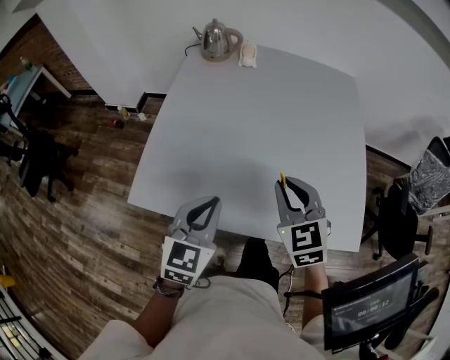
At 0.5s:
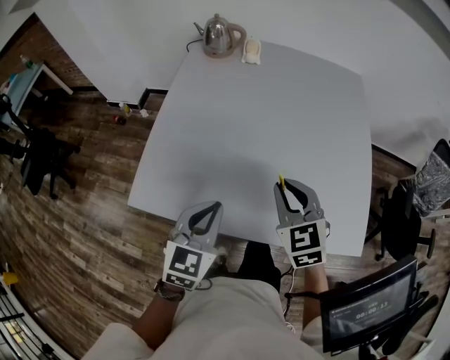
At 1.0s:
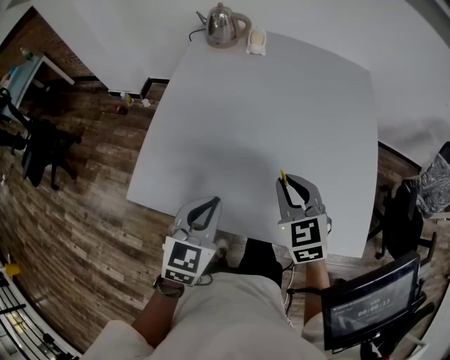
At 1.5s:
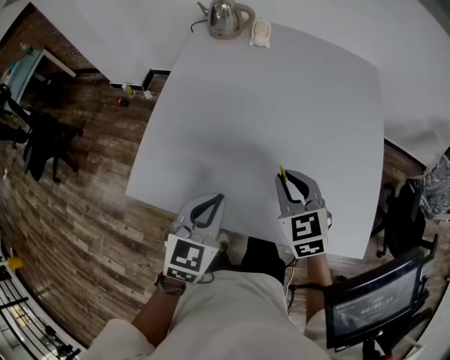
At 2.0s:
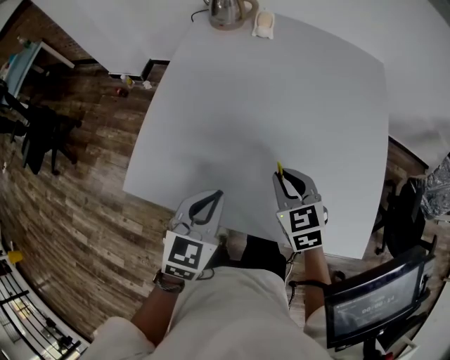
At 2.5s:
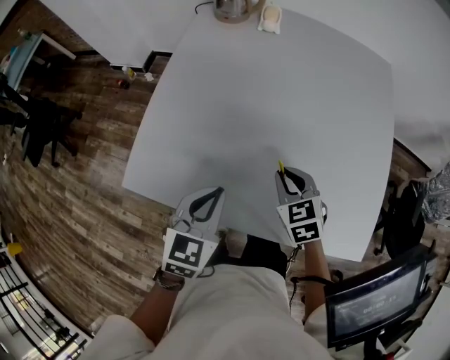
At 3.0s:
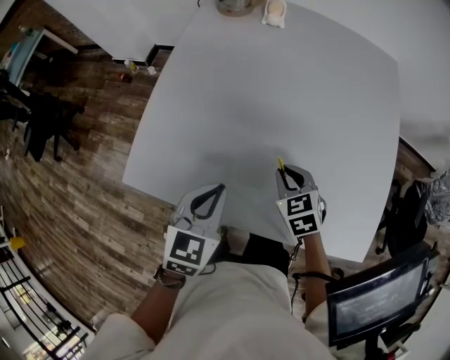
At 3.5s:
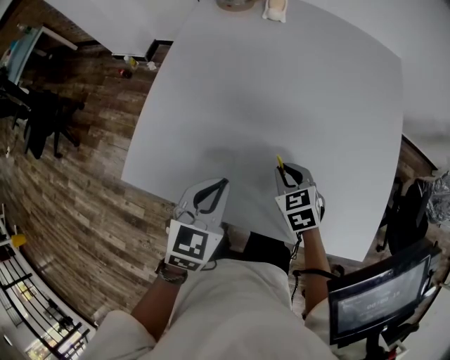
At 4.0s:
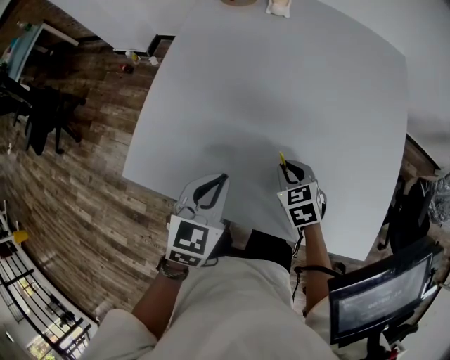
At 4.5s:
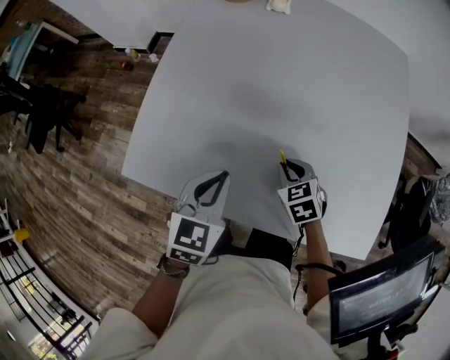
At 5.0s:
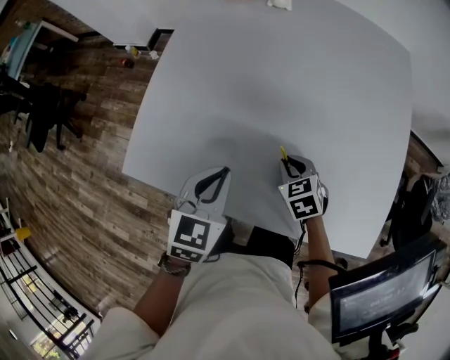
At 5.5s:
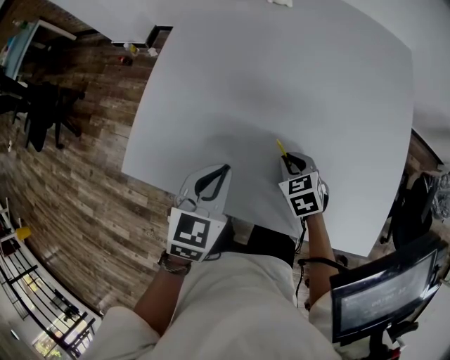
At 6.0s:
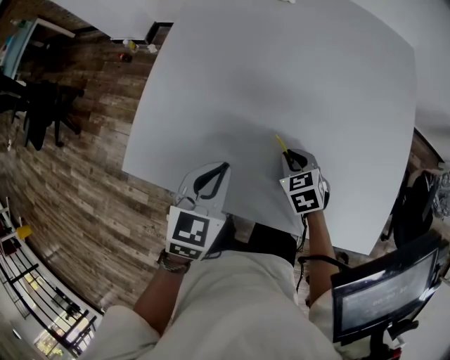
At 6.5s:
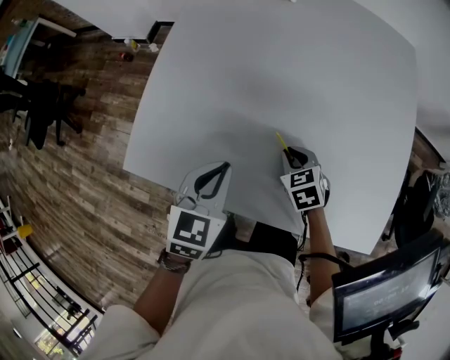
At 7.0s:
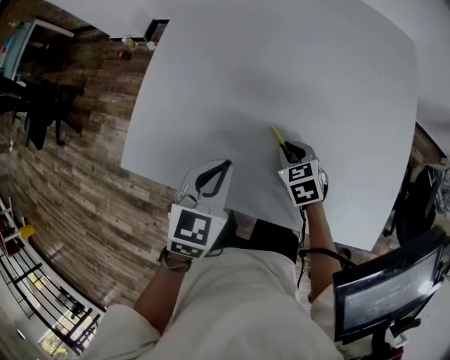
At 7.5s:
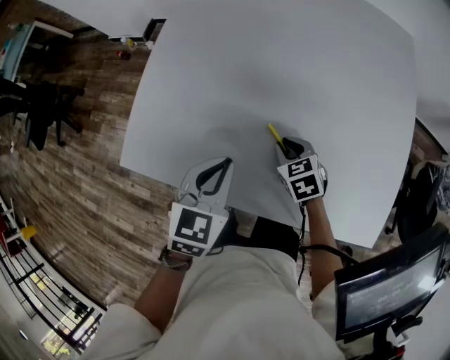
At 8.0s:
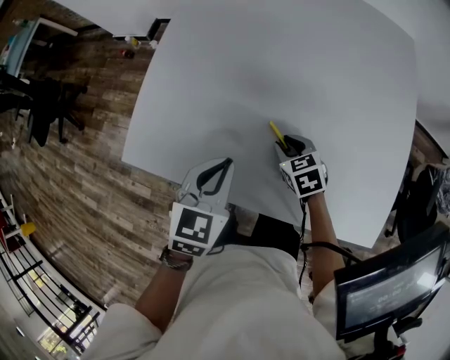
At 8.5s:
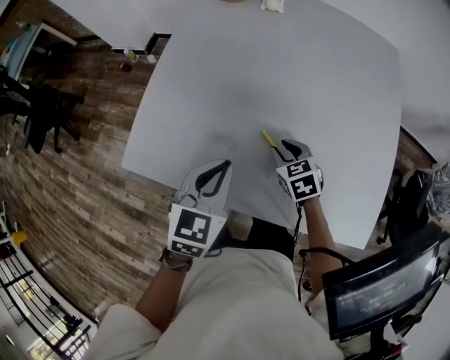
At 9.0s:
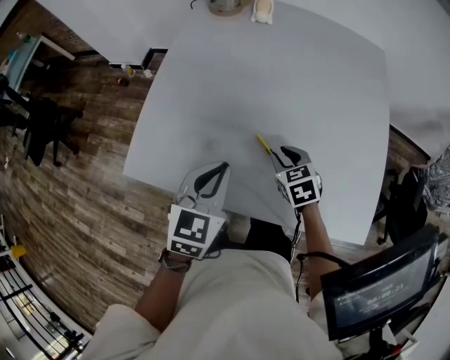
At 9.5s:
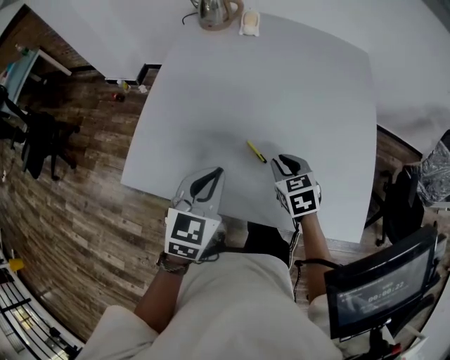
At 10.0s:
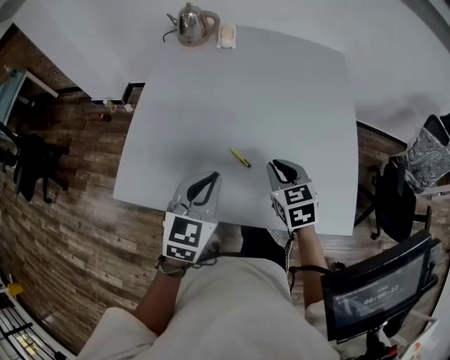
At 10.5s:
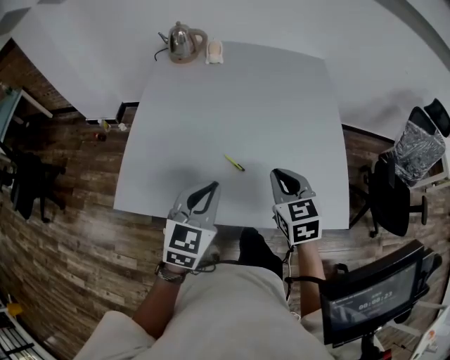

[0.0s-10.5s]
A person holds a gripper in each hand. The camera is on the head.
0.0s to 2.0s: The left gripper moves roughly 5 cm; the right gripper is displaced downward by roughly 10 cm.
2.0s to 4.0s: The right gripper moves downward, approximately 10 cm.
4.0s to 8.5s: The grippers stay close to where they were, moving slightly.
8.5s to 10.5s: The left gripper moves about 5 cm. Meanwhile the right gripper shifts some 20 cm upward and backward, swivels about 30 degrees, and closes up.

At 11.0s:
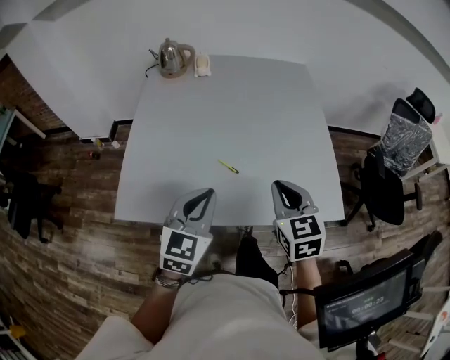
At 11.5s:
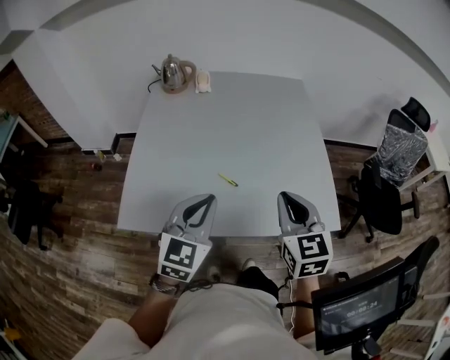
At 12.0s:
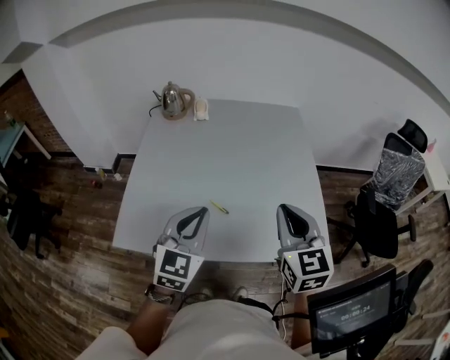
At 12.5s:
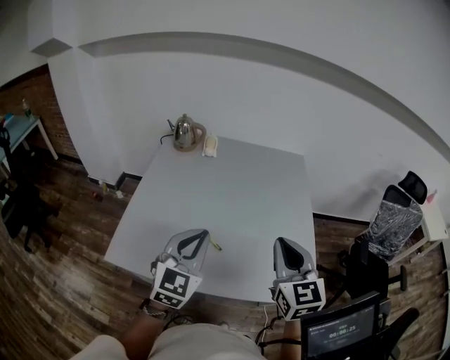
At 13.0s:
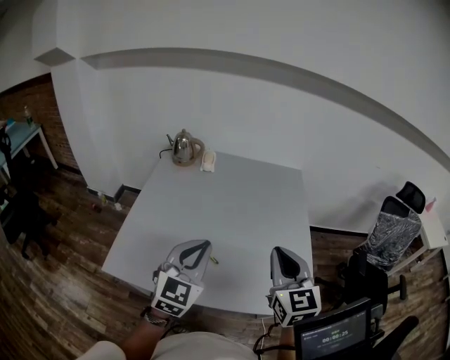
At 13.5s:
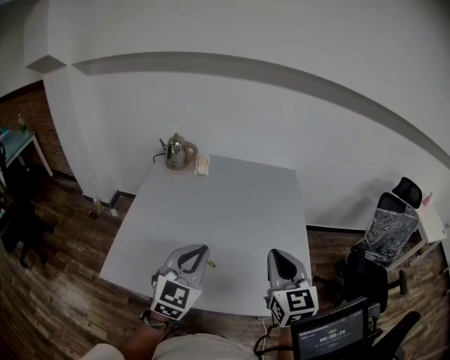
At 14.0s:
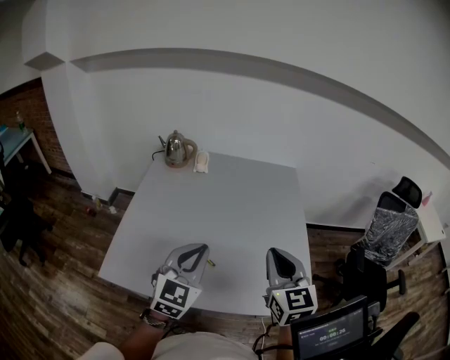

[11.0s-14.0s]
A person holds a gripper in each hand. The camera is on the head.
11.0s to 12.5s: The left gripper goes roughly 10 cm upward and forward. Meanwhile the right gripper goes some 10 cm upward.
12.5s to 14.0s: The grippers stay close to where they were, moving slightly.

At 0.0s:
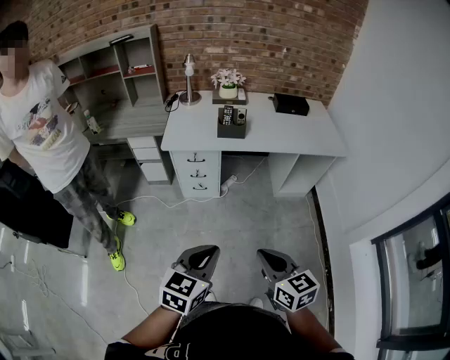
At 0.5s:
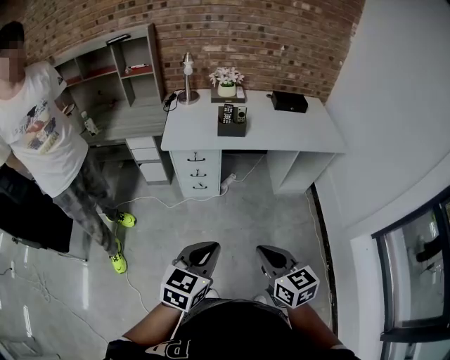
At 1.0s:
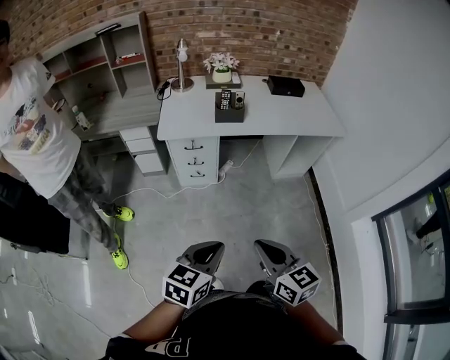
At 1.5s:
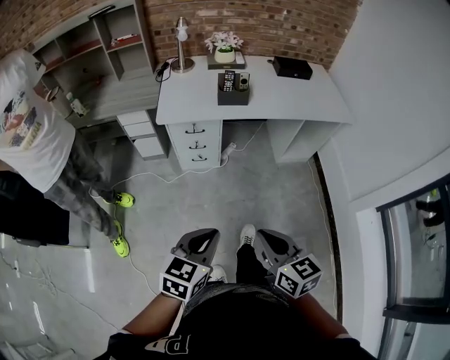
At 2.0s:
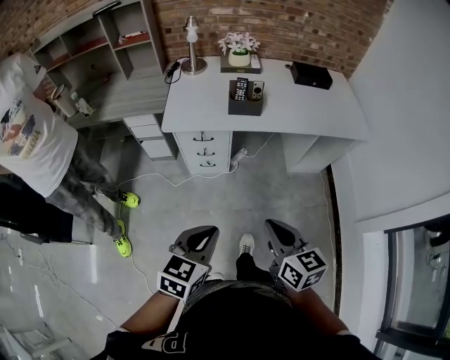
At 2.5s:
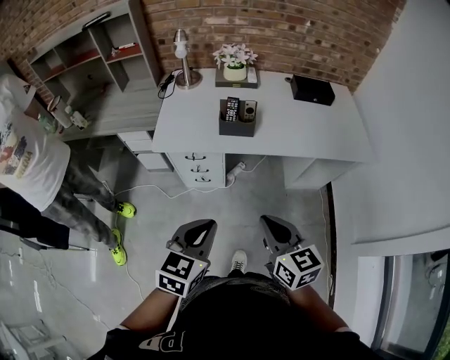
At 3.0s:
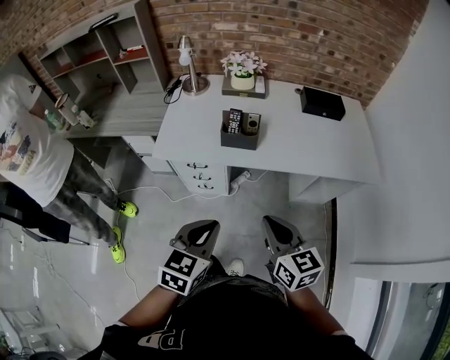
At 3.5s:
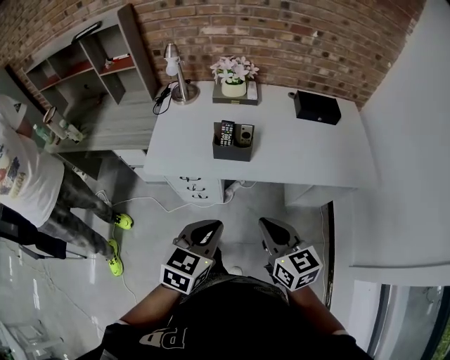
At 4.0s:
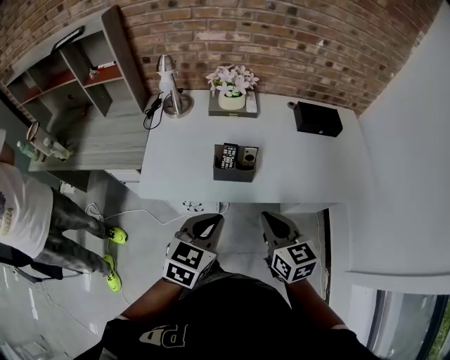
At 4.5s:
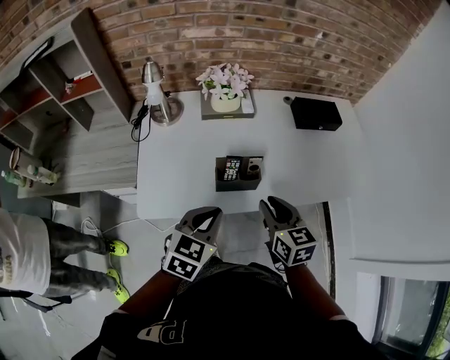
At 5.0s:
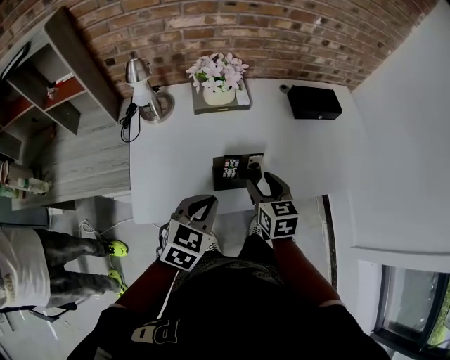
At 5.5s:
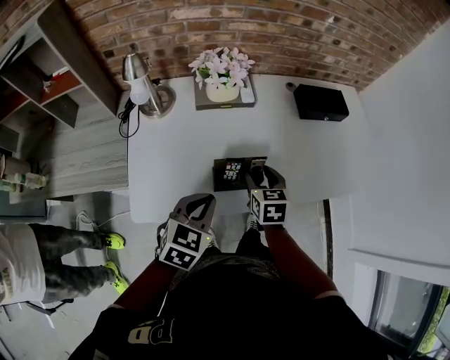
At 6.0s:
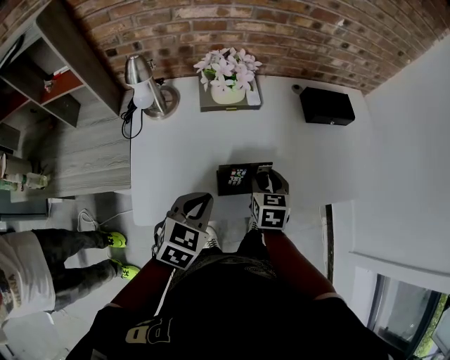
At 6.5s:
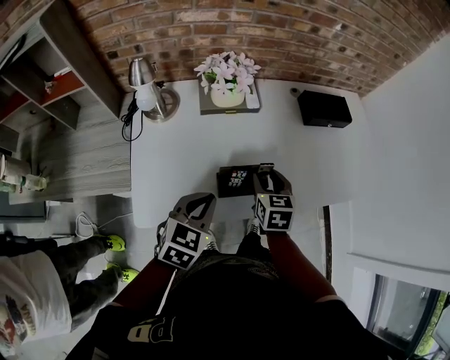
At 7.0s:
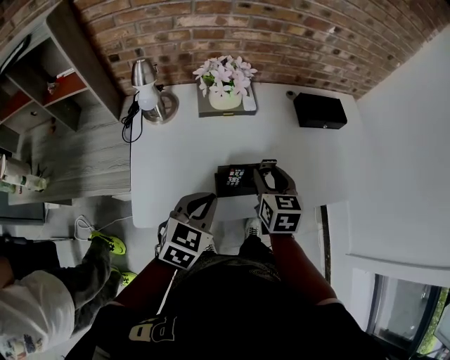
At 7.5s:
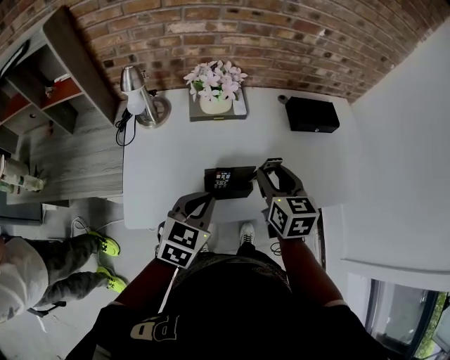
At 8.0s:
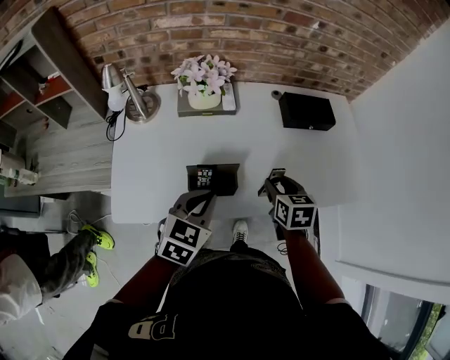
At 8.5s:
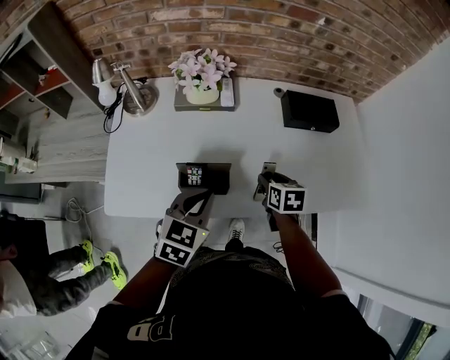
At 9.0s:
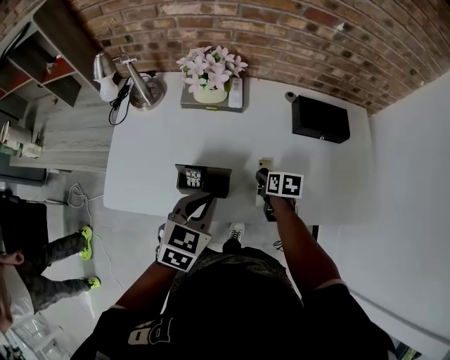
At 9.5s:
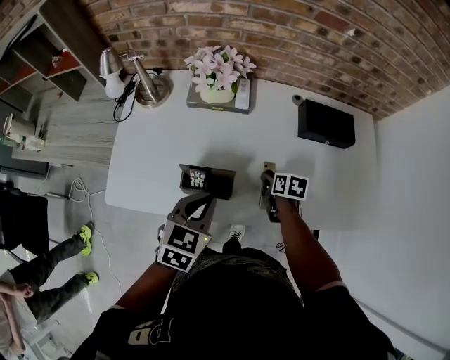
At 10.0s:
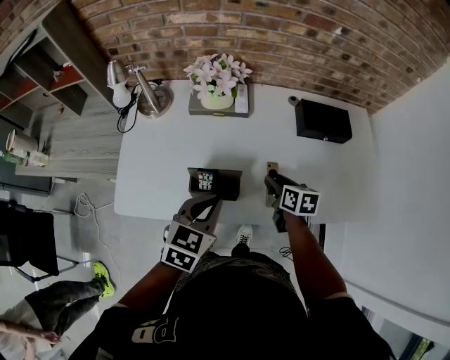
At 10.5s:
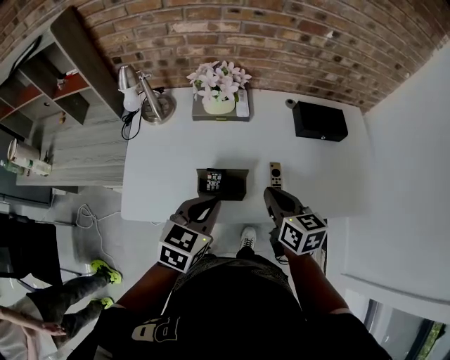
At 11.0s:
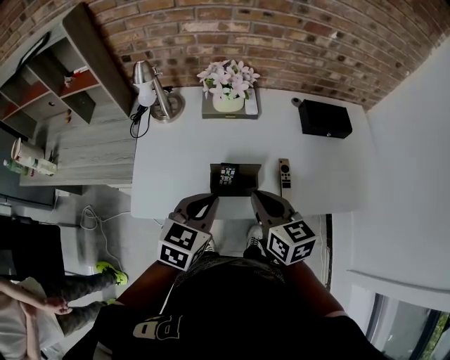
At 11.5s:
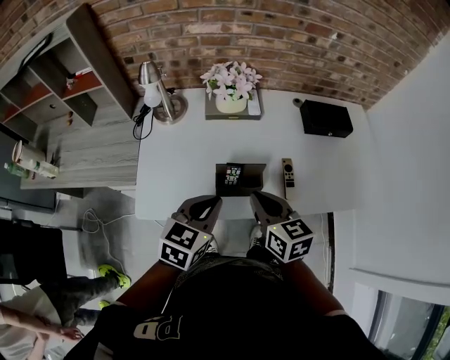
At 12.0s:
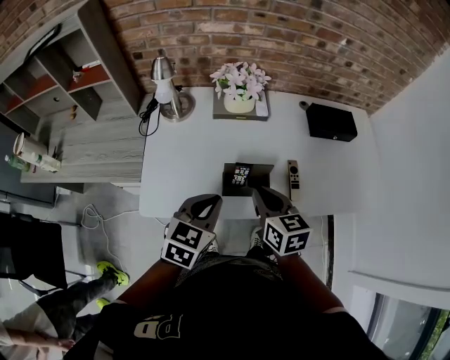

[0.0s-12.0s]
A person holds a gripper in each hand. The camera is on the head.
0.0s to 2.0s: The right gripper is displaced forward by roughly 15 cm. Meanwhile the left gripper heads forward and to the left, covering about 15 cm.
2.0s to 4.0s: The grippers both shift forward by approximately 35 cm.
4.0s to 6.0s: The right gripper is displaced forward and downward by some 25 cm, turns by roughly 30 degrees, and opens up. The left gripper moves forward, to the left and downward, roughly 20 cm.
6.0s to 8.0s: Both grippers travel together to the right, about 10 cm.
8.0s to 10.0s: The right gripper is displaced downward and forward by about 10 cm.
10.0s to 12.0s: The left gripper travels to the left by some 10 cm. The right gripper travels to the left, upward and backward by roughly 25 cm, turns by roughly 20 degrees, and closes up.

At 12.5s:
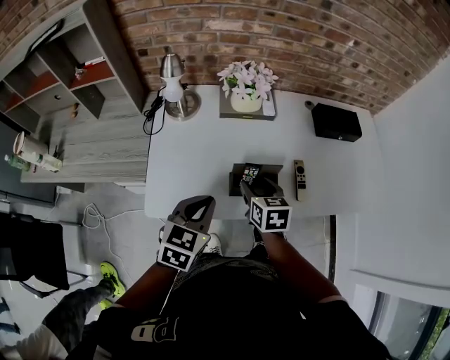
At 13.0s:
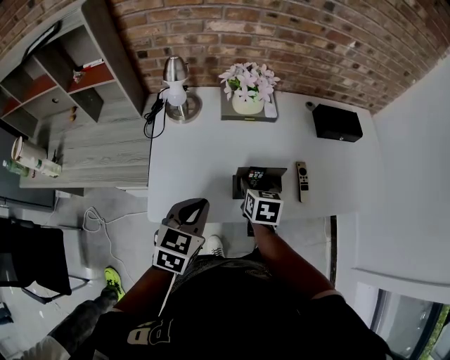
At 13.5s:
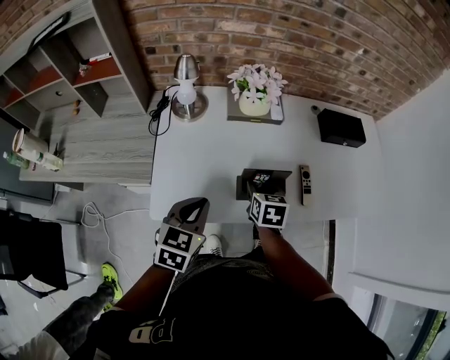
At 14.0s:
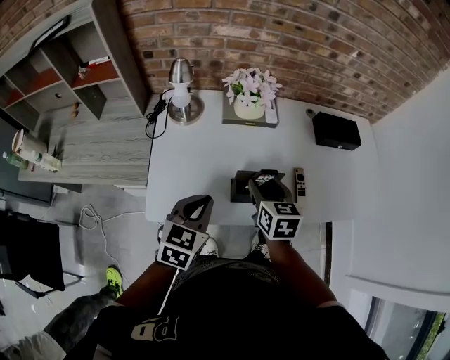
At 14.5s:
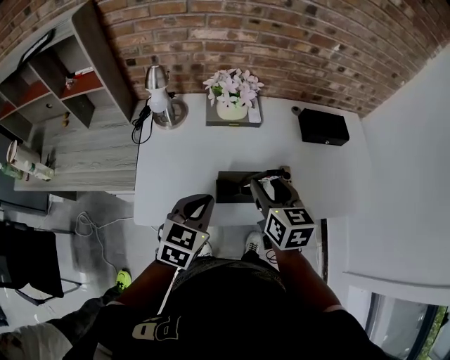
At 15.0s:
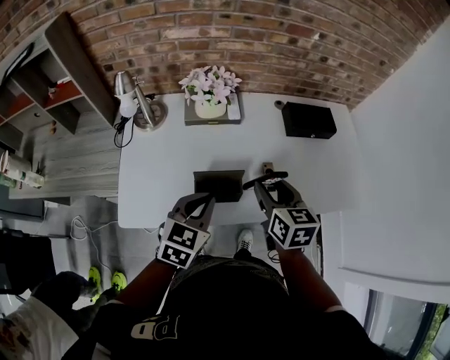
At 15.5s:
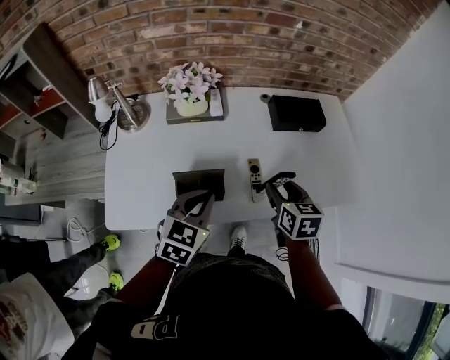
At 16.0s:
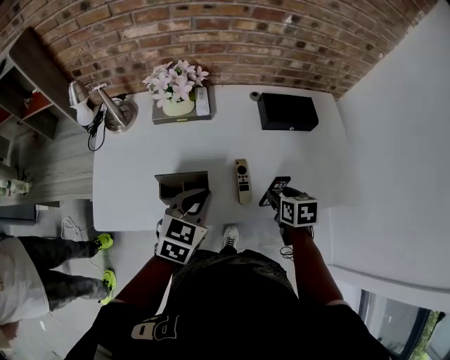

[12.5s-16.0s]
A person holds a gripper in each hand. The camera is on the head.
12.5s to 14.5s: The right gripper goes about 15 cm upward and to the right.
14.5s to 16.0s: The right gripper is displaced to the right and downward by some 30 cm, and changes its angle by approximately 30 degrees. The left gripper heads to the right, covering about 15 cm.
